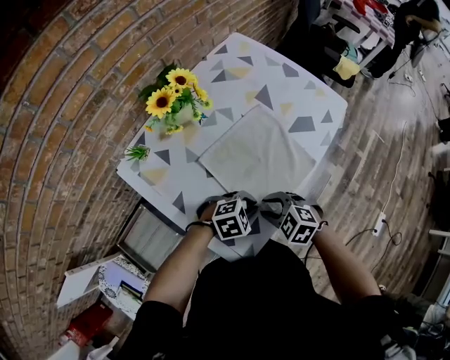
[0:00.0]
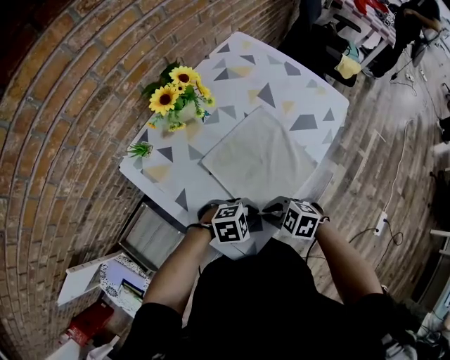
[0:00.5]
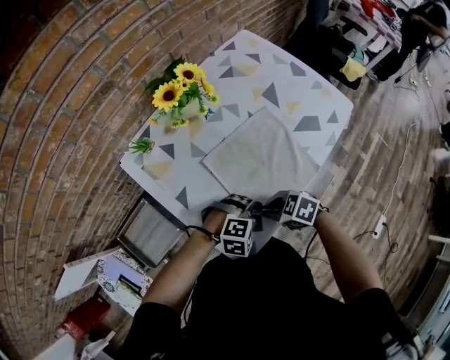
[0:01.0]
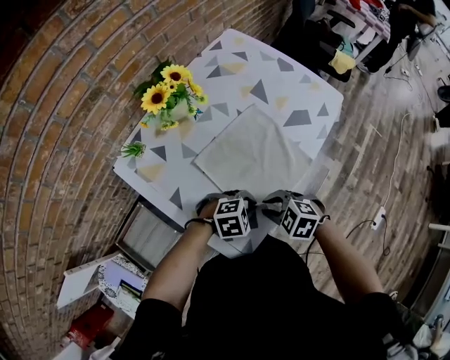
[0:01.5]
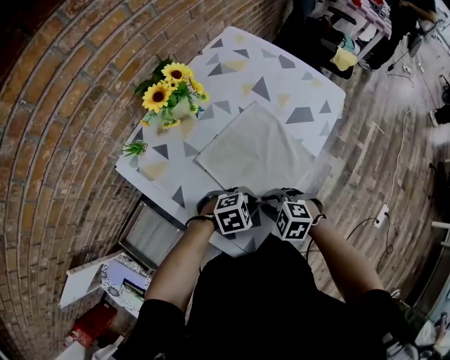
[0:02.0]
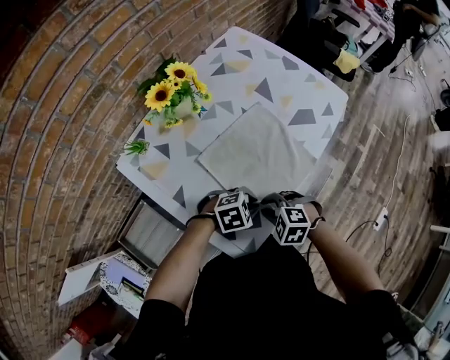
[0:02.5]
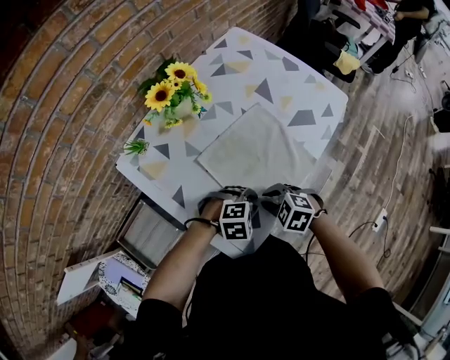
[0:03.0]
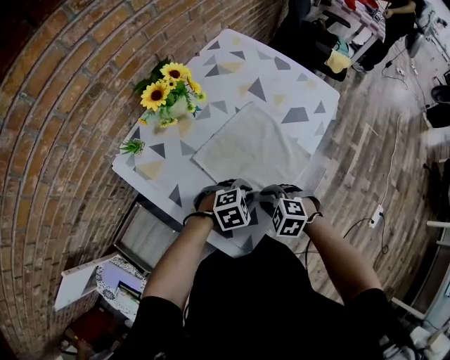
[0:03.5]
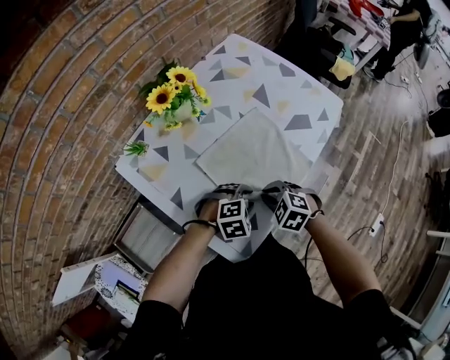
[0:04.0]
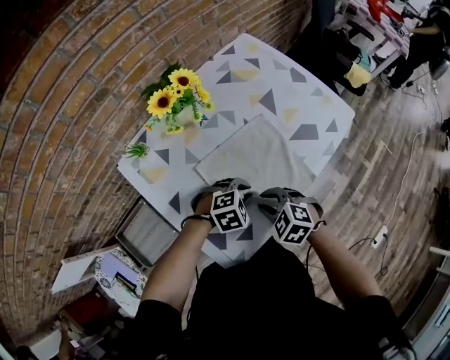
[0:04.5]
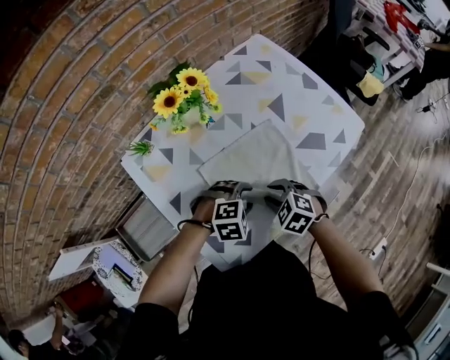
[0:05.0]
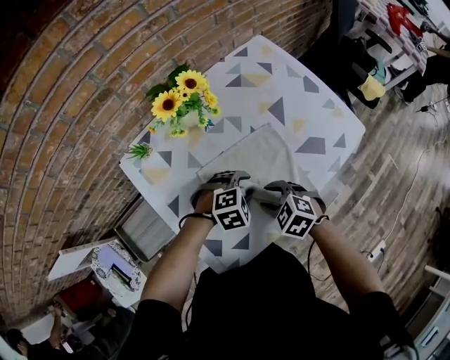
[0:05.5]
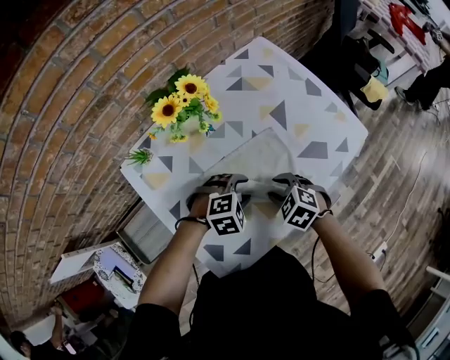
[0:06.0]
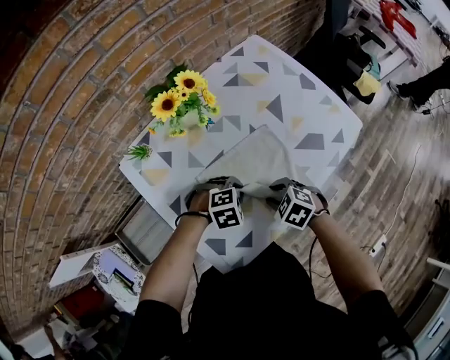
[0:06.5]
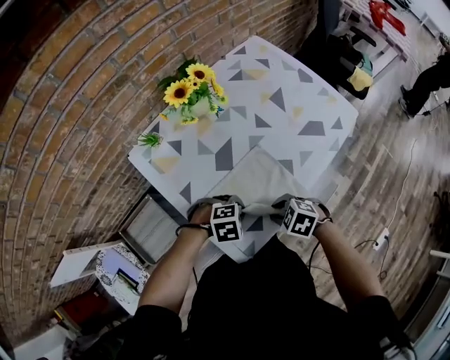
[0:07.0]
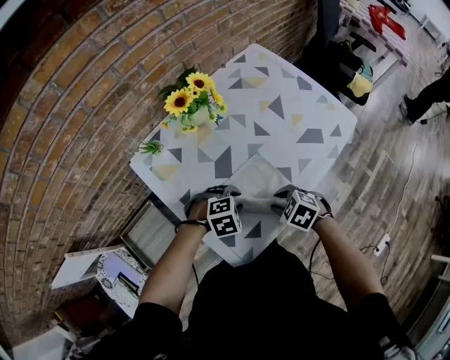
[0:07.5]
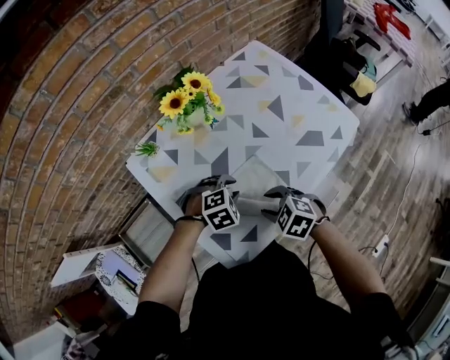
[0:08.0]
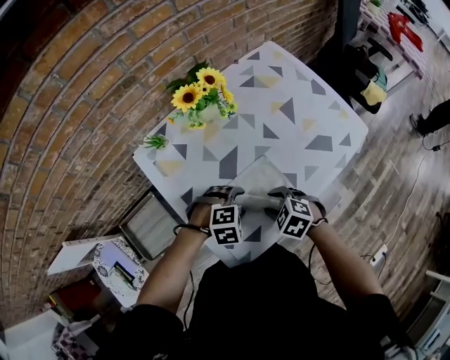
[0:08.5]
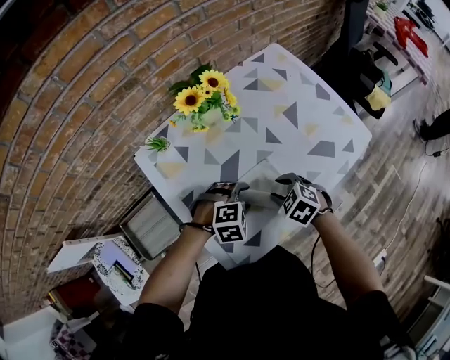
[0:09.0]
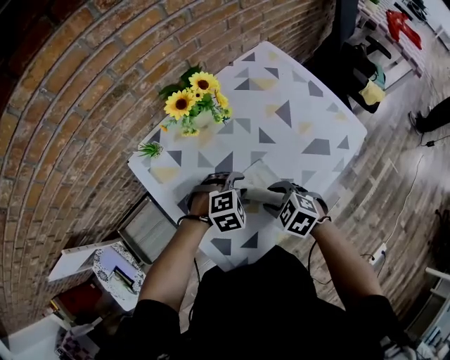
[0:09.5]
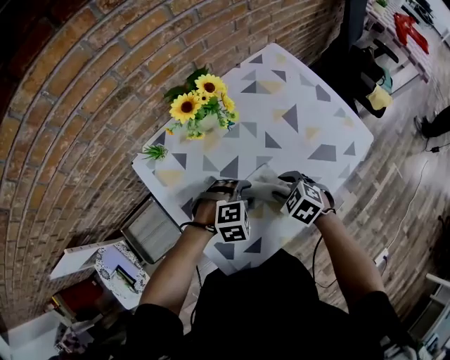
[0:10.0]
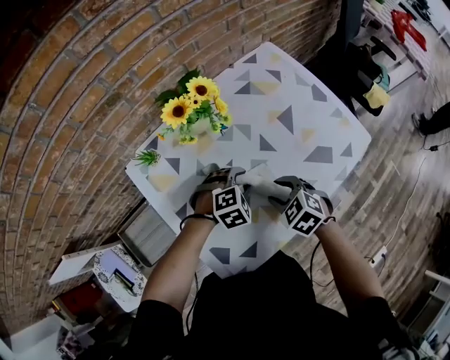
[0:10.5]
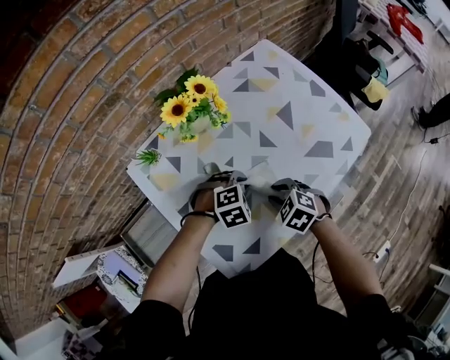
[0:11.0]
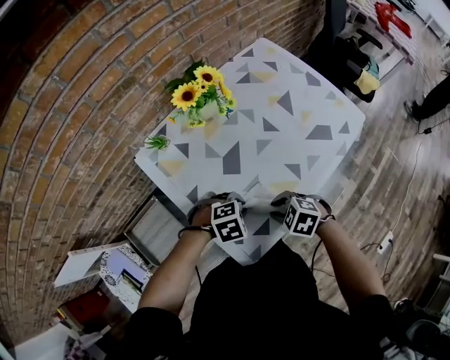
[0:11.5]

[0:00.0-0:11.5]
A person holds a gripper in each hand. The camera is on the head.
0:00.0 to 0:02.0: The left gripper opens, then closes again.
0:02.0 to 0:04.0: The left gripper opens.
0:04.0 to 0:06.0: The right gripper changes place by roughly 10 cm, and opens its fingers. The left gripper changes place by roughly 10 cm.
0:07.5 to 0:09.5: The left gripper shifts by approximately 10 cm. Meanwhile the right gripper moves some 5 cm.
0:09.5 to 0:11.5: The right gripper changes place by about 10 cm. The left gripper shifts by some 10 cm, and closes up.

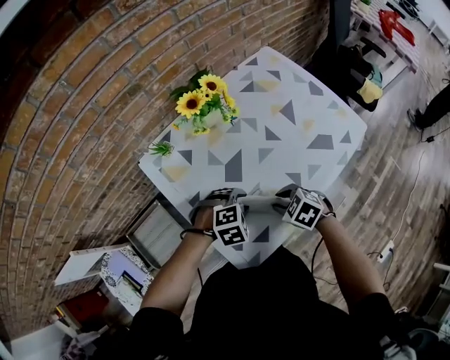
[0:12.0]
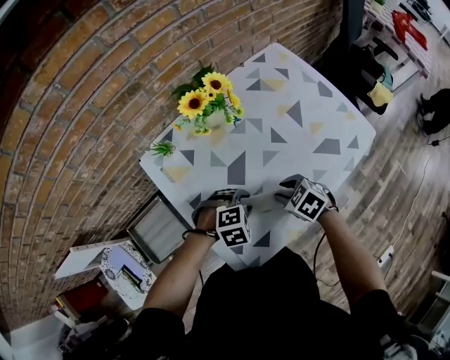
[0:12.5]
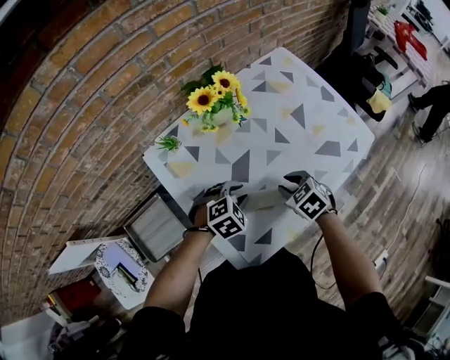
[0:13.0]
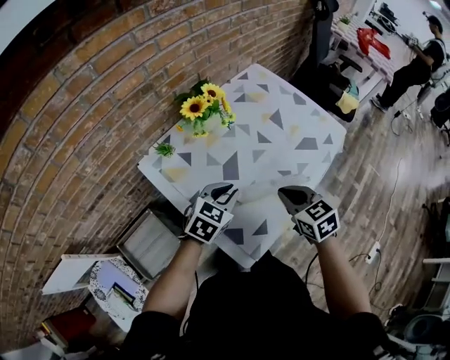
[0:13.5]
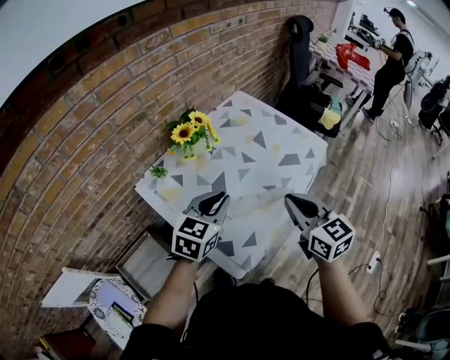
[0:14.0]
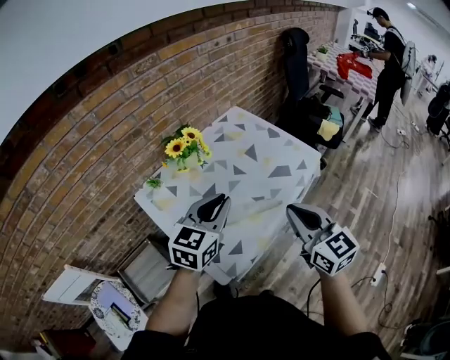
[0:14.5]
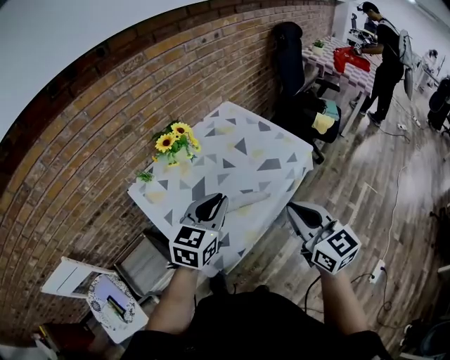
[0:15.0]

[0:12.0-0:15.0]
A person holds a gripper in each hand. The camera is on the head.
0:12.0 to 0:13.5: Both grippers move upward, roughly 10 cm. The left gripper tilts its fingers approximately 30 degrees upward, and closes, while the right gripper swivels roughly 40 degrees, and closes its fingers.
0:13.5 to 0:15.0: The right gripper travels upward, to the right and backward by roughly 25 cm, and tilts its fingers roughly 30 degrees upward, while the left gripper travels upward and to the right by about 20 cm, and swivels some 20 degrees.

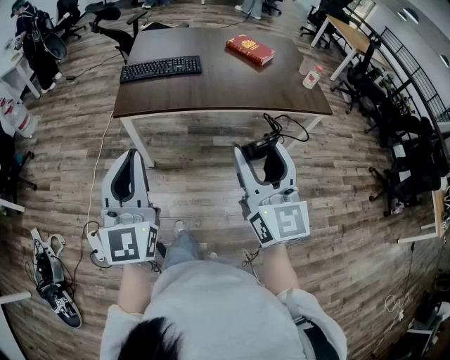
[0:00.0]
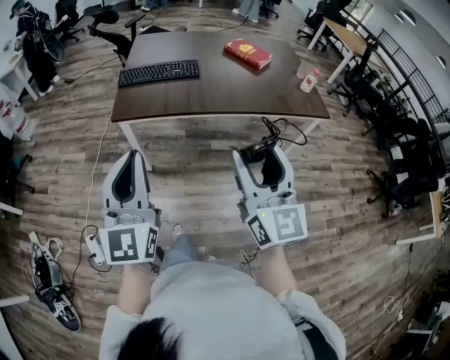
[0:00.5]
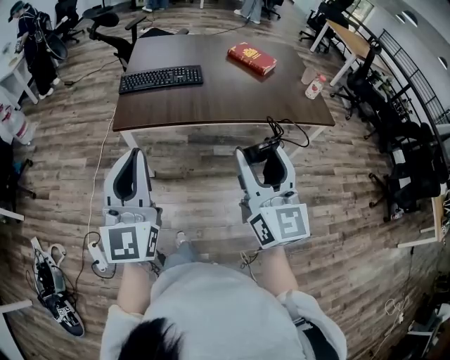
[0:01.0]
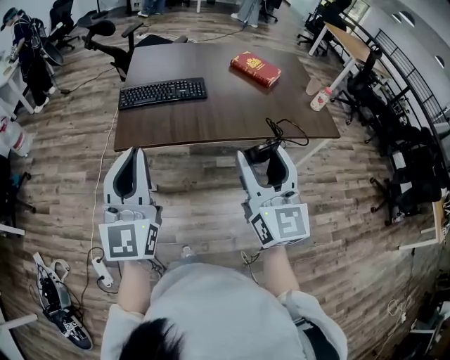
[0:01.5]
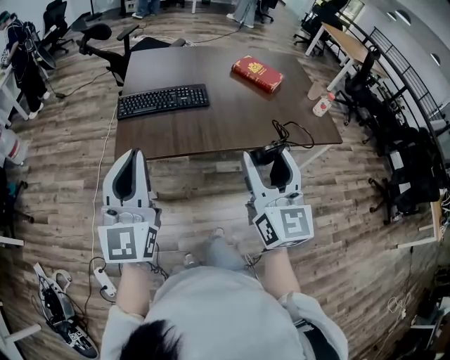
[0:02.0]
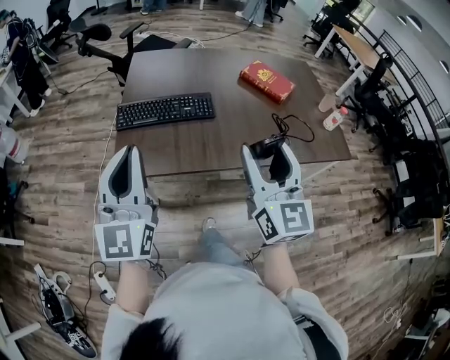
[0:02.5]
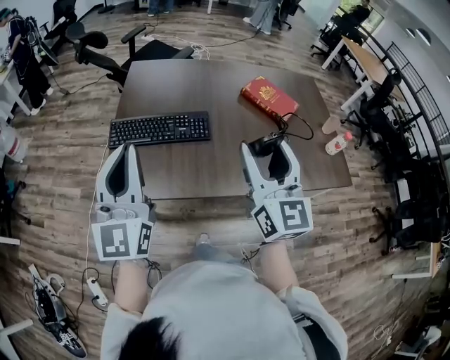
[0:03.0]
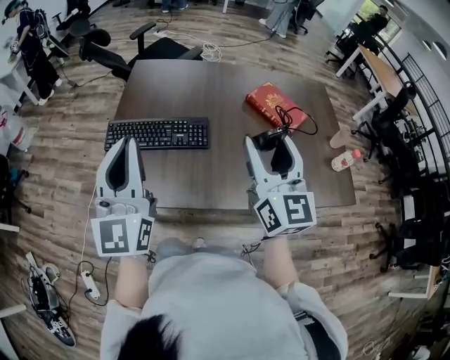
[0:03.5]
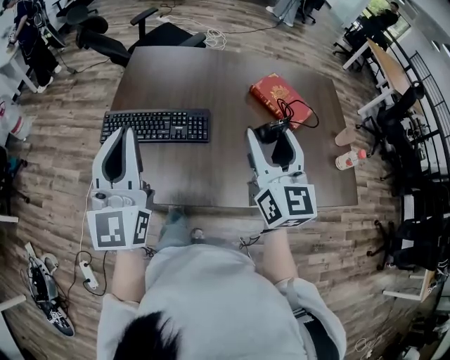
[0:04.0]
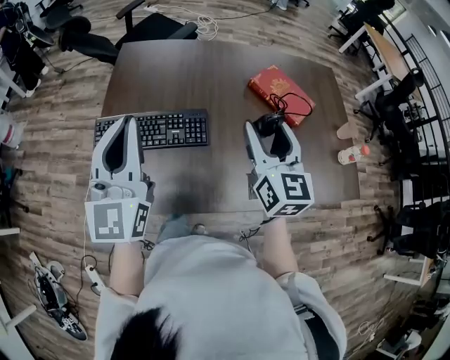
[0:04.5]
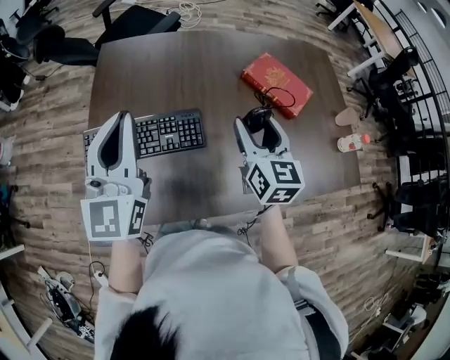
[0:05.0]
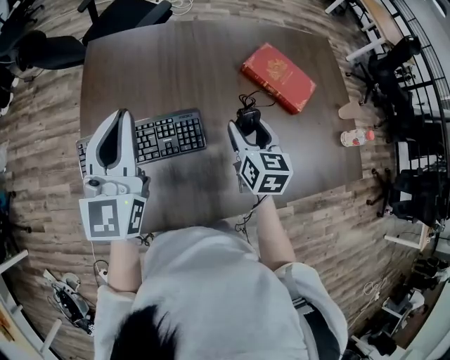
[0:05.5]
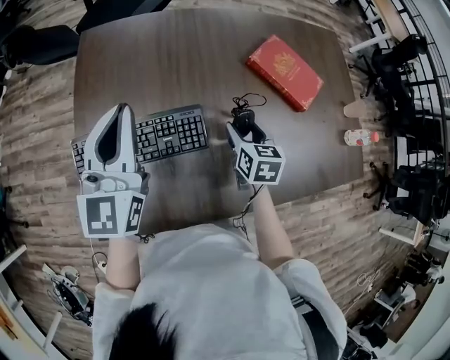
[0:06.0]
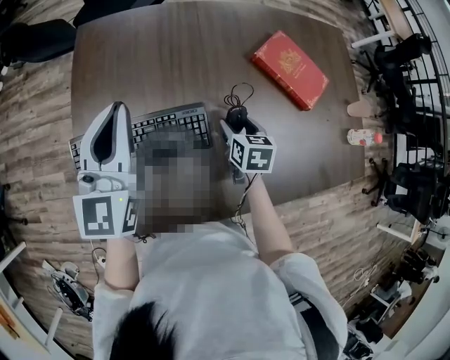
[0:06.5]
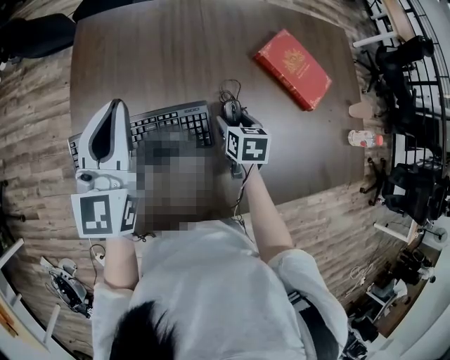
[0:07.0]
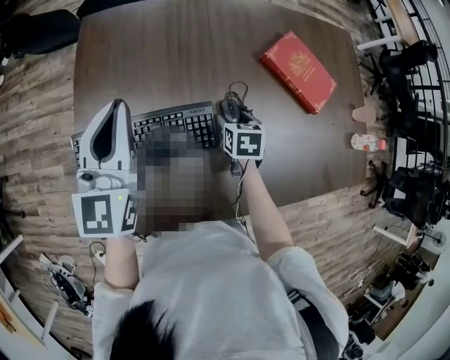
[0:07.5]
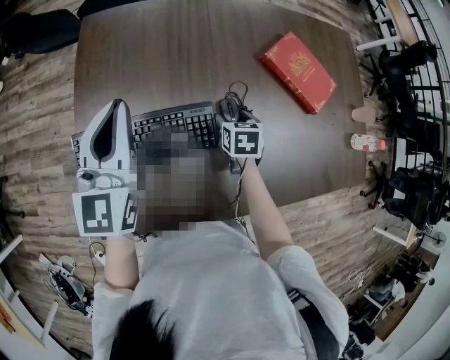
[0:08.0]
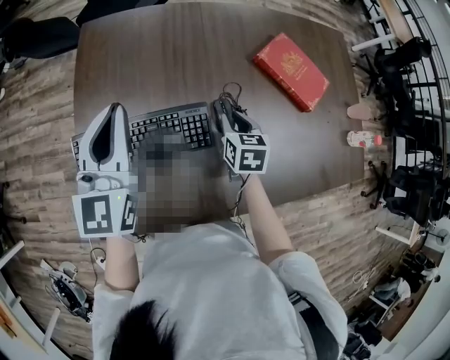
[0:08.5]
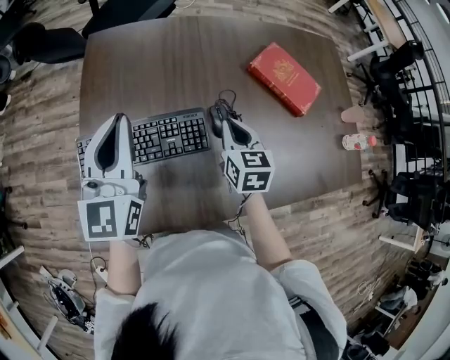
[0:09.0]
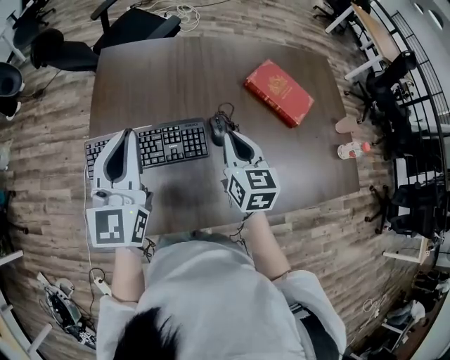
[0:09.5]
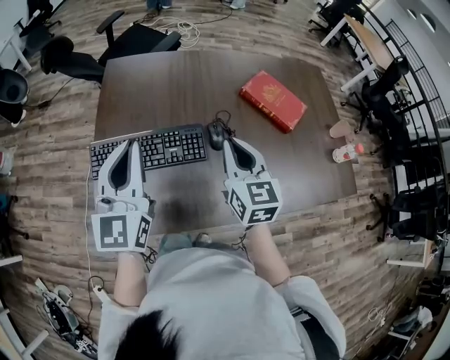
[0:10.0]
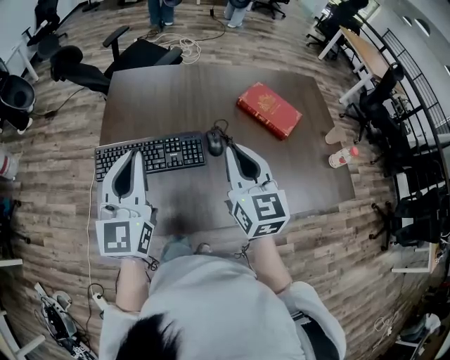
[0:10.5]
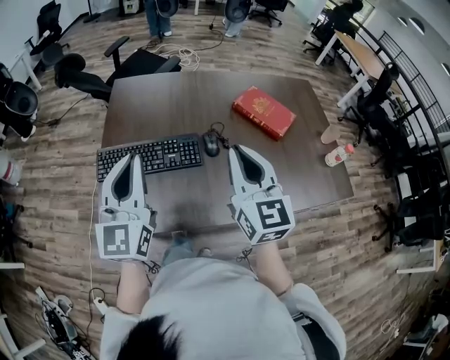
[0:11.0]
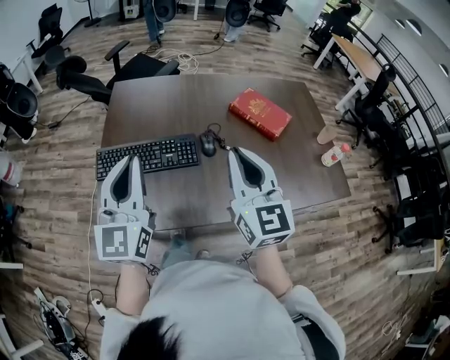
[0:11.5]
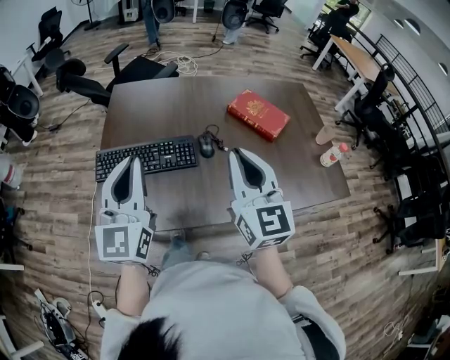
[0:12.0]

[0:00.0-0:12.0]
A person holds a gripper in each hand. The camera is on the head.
0:00.0 to 0:02.0: Both grippers move forward, approximately 20 cm.
0:02.0 to 0:04.0: The two grippers go about 30 cm forward.
0:04.0 to 0:06.0: The right gripper is displaced downward and forward by about 30 cm, and tilts its fingers some 40 degrees downward, while the left gripper shifts approximately 25 cm forward, and changes its angle by some 20 degrees.
0:06.0 to 0:08.0: The right gripper heads downward, covering about 10 cm; the left gripper moves about 5 cm.
0:08.0 to 0:10.0: The left gripper shifts about 15 cm backward and upward, while the right gripper heads upward and backward, covering some 30 cm, tilts its fingers roughly 40 degrees upward, and closes its fingers.
0:10.0 to 0:12.0: The left gripper heads backward, covering about 10 cm; the right gripper heads backward and upward, covering approximately 15 cm.
